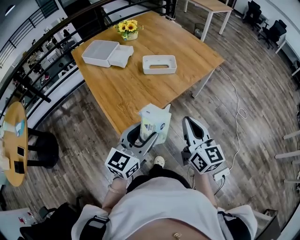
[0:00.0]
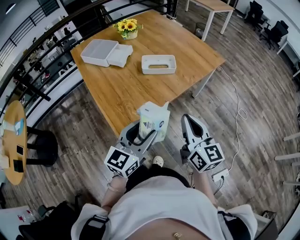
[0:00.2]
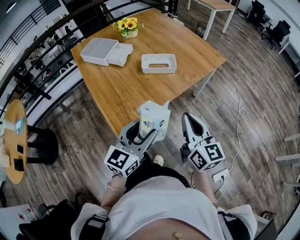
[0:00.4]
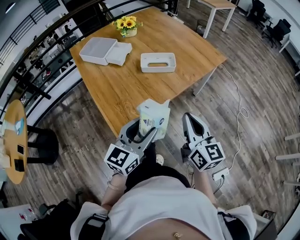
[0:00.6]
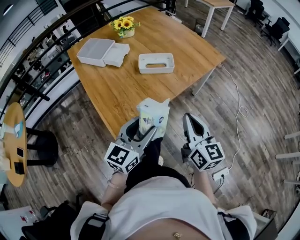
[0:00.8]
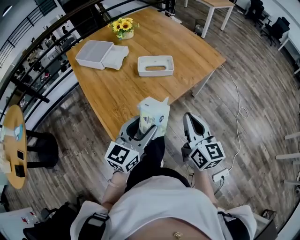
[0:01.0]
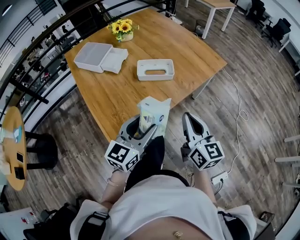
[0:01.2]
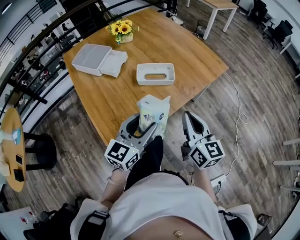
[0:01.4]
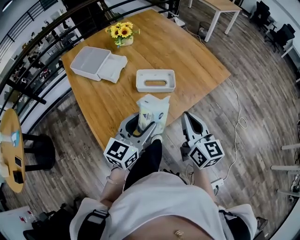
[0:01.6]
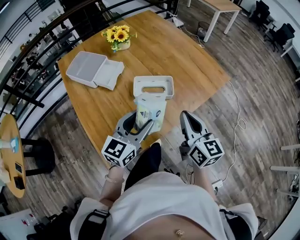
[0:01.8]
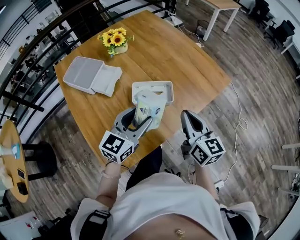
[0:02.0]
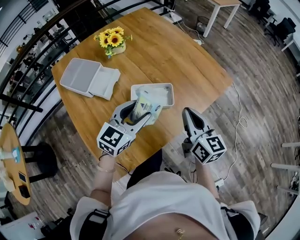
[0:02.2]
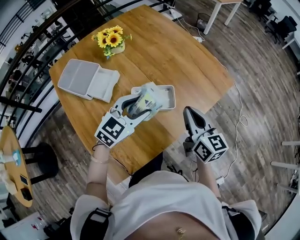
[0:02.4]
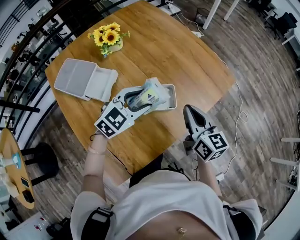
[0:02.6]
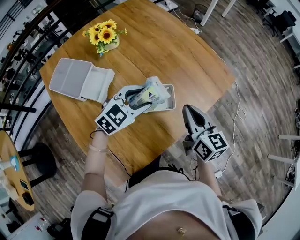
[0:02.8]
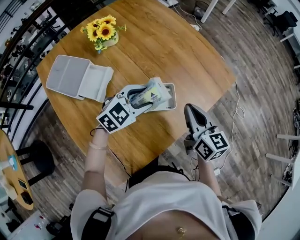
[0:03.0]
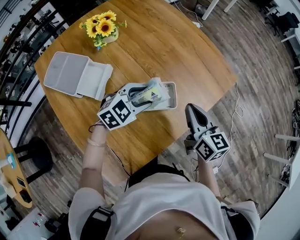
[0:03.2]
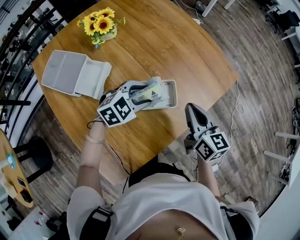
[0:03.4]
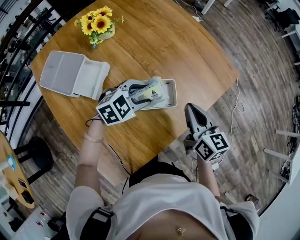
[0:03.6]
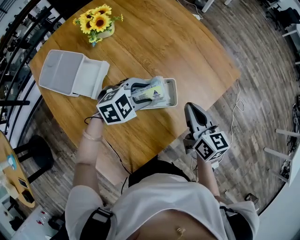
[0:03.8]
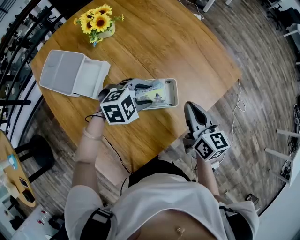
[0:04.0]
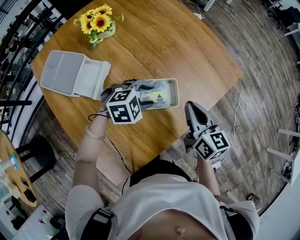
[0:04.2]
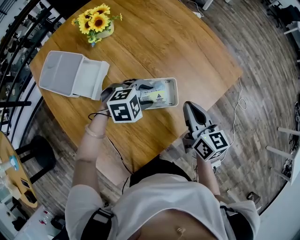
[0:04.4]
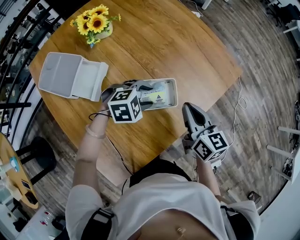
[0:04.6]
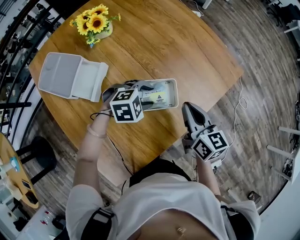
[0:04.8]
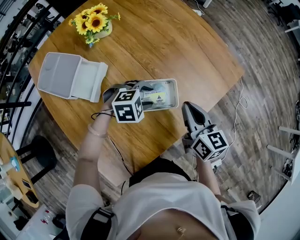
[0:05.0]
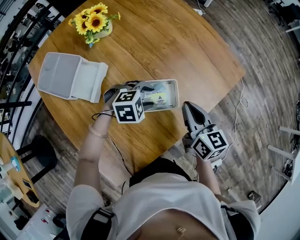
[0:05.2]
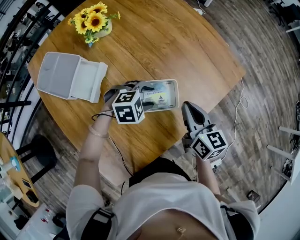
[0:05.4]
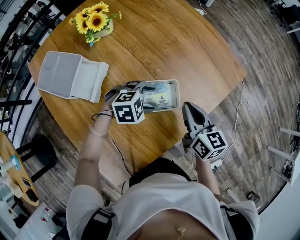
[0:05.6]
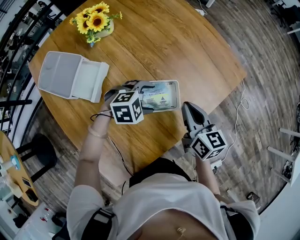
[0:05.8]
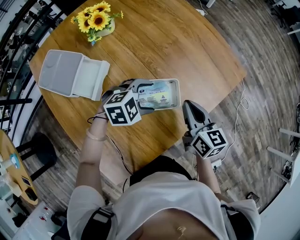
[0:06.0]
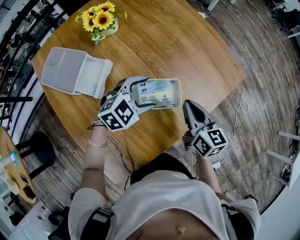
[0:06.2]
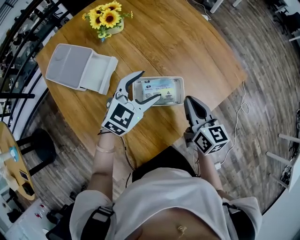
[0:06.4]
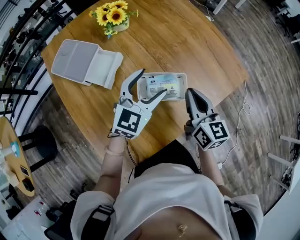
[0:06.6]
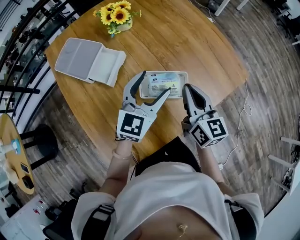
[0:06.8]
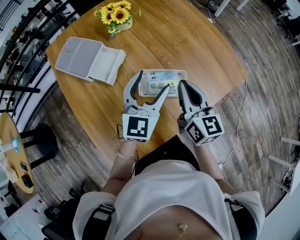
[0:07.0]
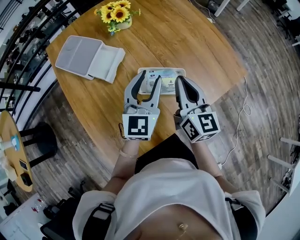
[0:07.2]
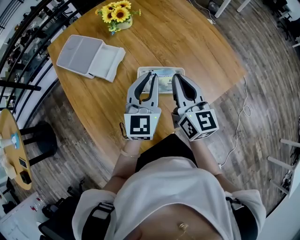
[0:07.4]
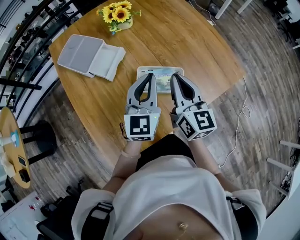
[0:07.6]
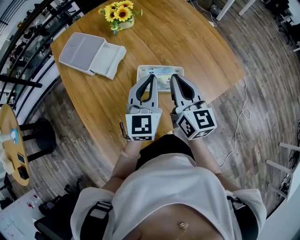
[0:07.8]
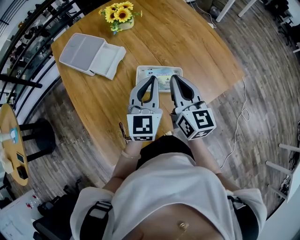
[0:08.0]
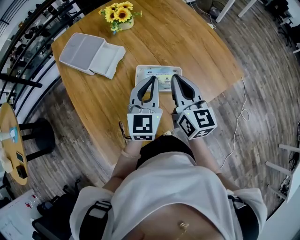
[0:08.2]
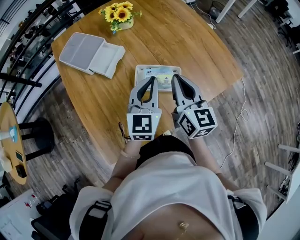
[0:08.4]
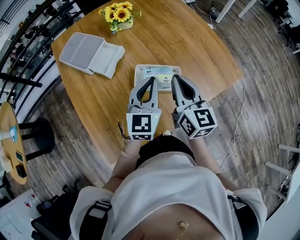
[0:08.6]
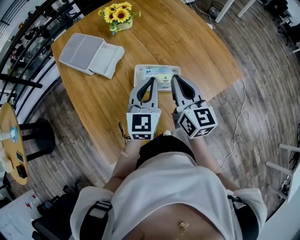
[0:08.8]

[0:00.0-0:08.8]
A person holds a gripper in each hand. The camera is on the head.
0:00.0 to 0:01.4: Both grippers move forward, some 15 cm.
0:01.4 to 0:03.0: Both grippers travel together forward, some 25 cm. The left gripper rotates approximately 40 degrees.
0:03.0 to 0:04.4: The left gripper travels downward by roughly 5 cm, and swivels about 30 degrees.
0:04.4 to 0:05.8: The left gripper opens up.
0:05.8 to 0:07.4: The left gripper moves upward, roughly 20 cm, points its fingers roughly 50 degrees further upward, and closes up. Meanwhile the right gripper heads upward, covering approximately 10 cm, and swivels about 20 degrees.
0:07.4 to 0:08.8: The grippers move only a little.

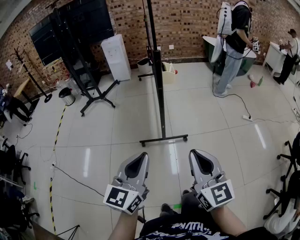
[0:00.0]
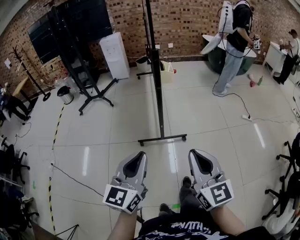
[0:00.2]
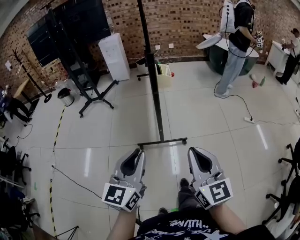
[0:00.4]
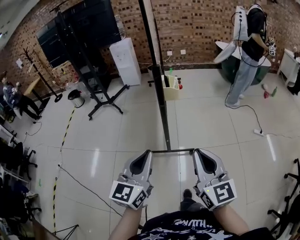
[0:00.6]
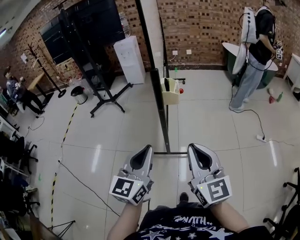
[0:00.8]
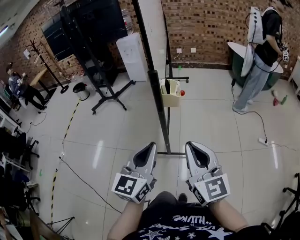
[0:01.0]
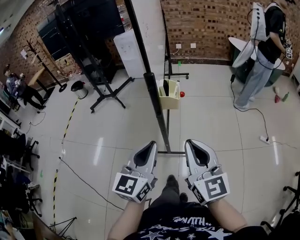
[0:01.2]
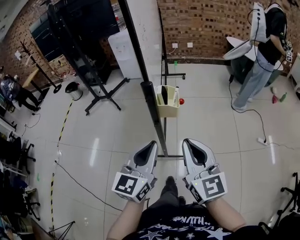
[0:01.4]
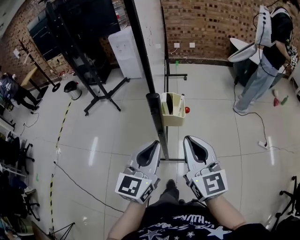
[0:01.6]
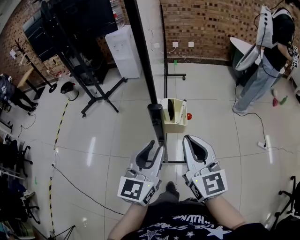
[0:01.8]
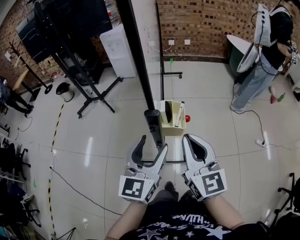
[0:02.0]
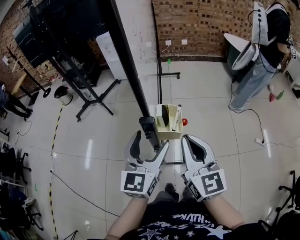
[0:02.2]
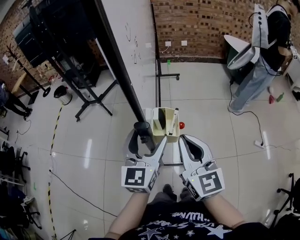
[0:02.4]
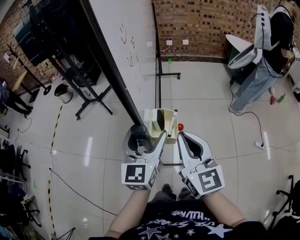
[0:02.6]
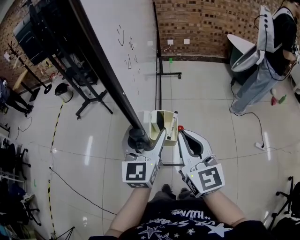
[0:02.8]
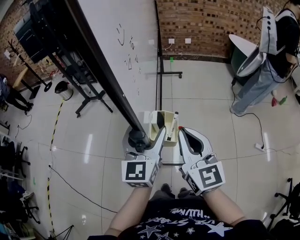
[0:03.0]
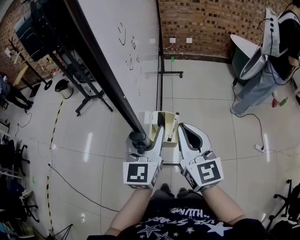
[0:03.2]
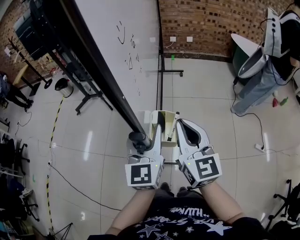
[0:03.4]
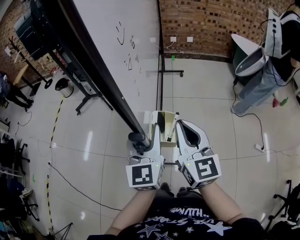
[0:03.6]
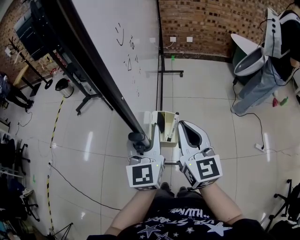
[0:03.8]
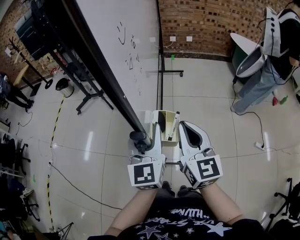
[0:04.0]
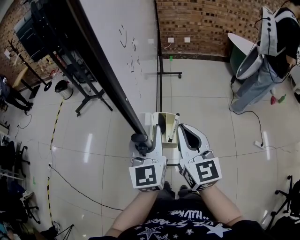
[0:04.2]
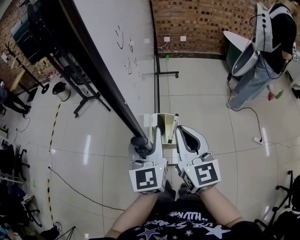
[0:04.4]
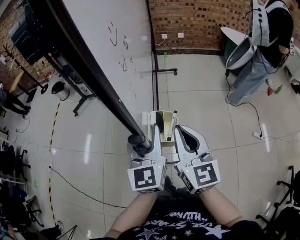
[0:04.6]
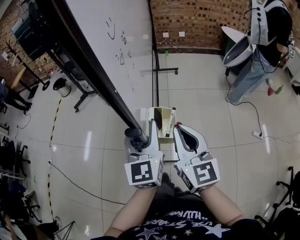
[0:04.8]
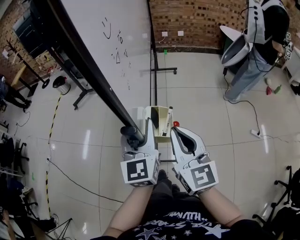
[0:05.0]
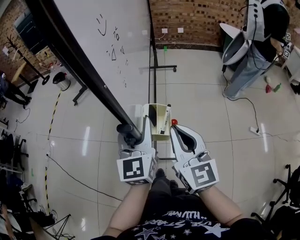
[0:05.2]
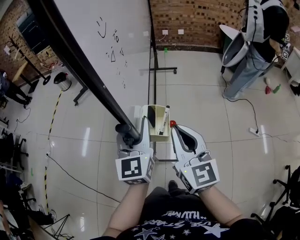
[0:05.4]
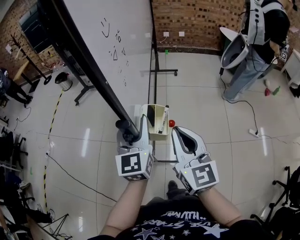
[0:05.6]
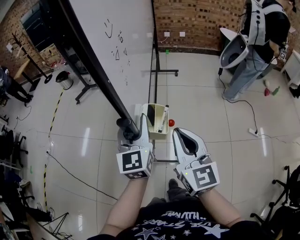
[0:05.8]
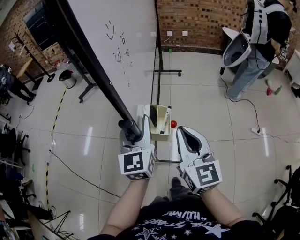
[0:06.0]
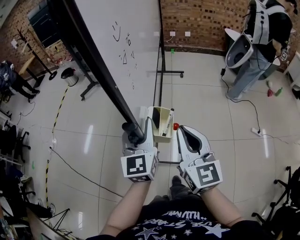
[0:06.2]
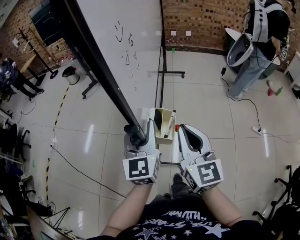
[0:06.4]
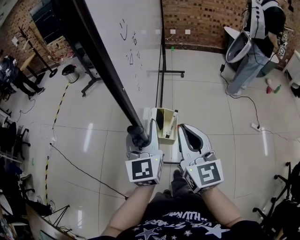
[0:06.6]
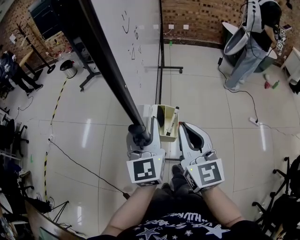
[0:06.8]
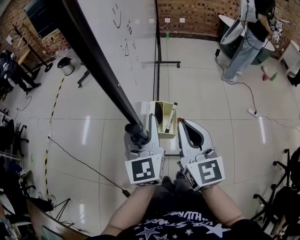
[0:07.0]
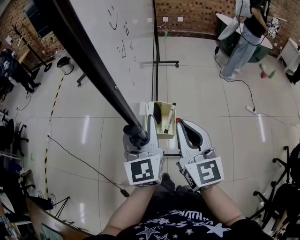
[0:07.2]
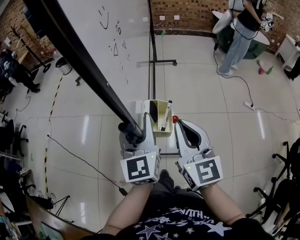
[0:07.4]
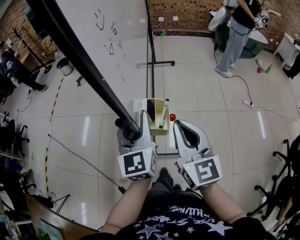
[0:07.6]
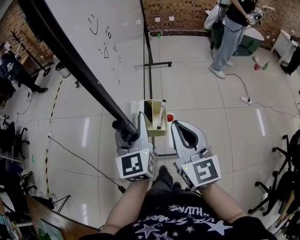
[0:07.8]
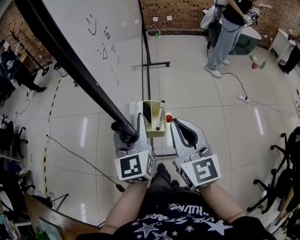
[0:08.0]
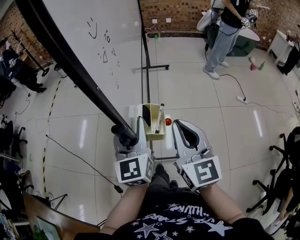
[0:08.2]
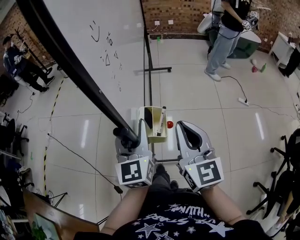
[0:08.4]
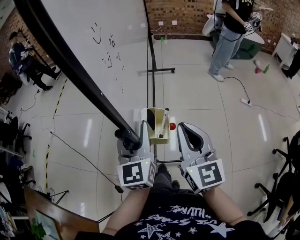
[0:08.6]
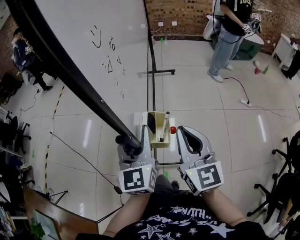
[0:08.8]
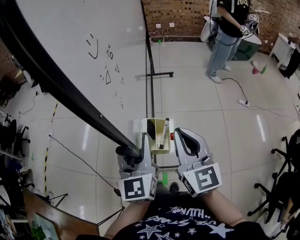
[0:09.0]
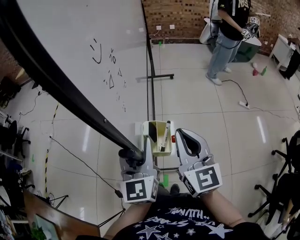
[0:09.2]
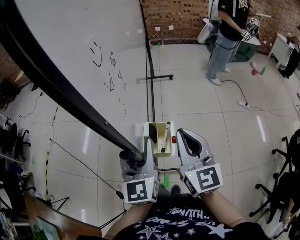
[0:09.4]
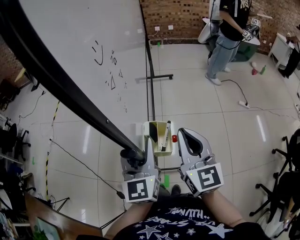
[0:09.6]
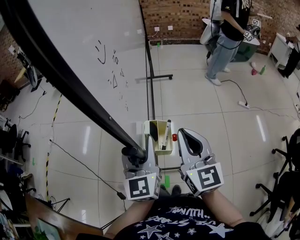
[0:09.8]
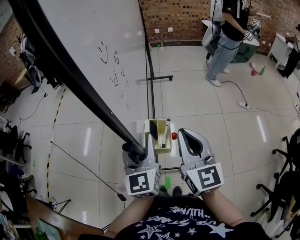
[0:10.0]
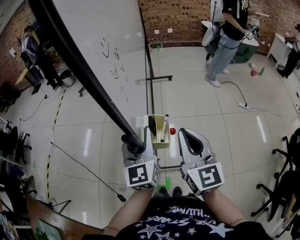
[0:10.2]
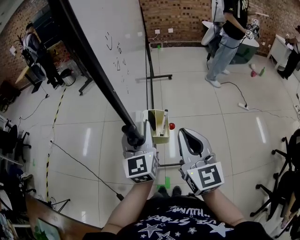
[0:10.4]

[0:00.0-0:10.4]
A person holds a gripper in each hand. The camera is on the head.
0:00.0 to 0:01.4: Both grippers move forward, roughly 30 cm.
0:01.4 to 0:03.0: Both grippers move forward, roughly 20 cm. The left gripper opens its fingers.
0:03.0 to 0:04.4: The left gripper closes its fingers.
0:04.4 to 0:06.0: Both grippers move backward, roughly 15 cm.
0:06.0 to 0:07.4: Both grippers travel together backward, approximately 20 cm.
0:07.4 to 0:09.0: Both grippers travel together backward, some 10 cm.
0:09.0 to 0:10.4: The grippers stay close to where they were, moving slightly.

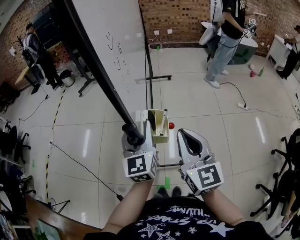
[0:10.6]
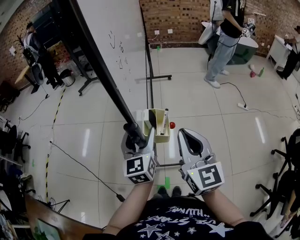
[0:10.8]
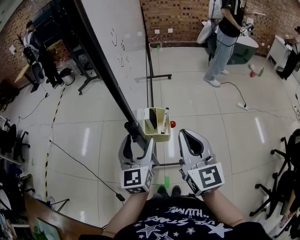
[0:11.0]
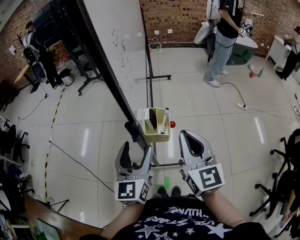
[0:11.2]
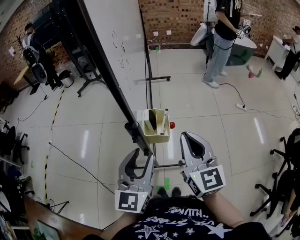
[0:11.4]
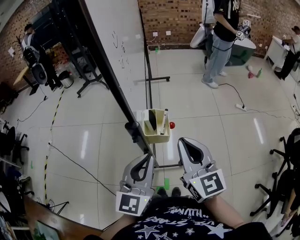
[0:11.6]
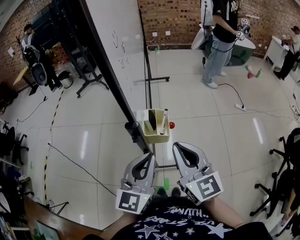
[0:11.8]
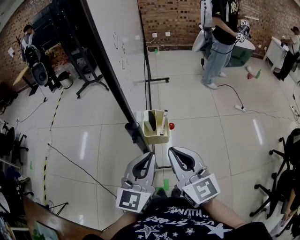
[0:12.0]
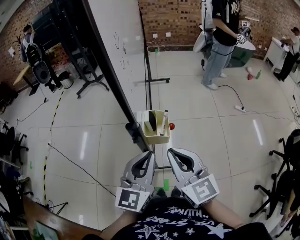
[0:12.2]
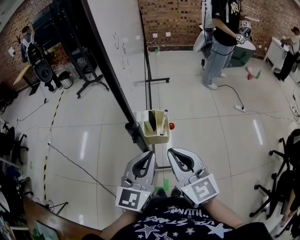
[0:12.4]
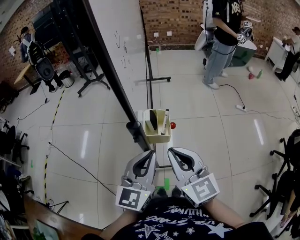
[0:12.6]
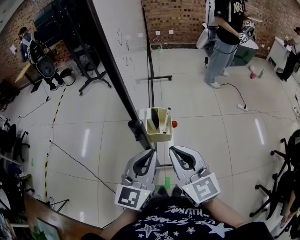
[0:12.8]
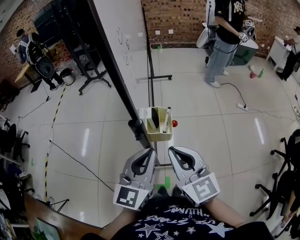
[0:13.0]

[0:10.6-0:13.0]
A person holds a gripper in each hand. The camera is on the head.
0:10.6 to 0:11.8: The left gripper is displaced backward by approximately 10 cm, turns by approximately 20 degrees, and closes its fingers.
0:11.8 to 0:13.0: The grippers move only a little.

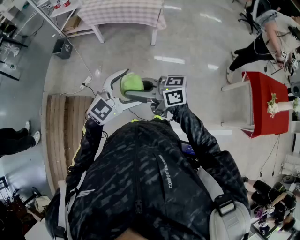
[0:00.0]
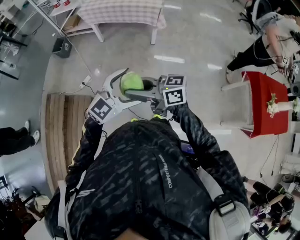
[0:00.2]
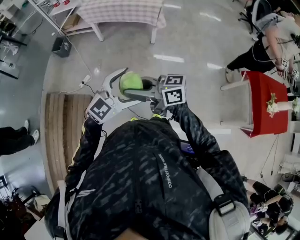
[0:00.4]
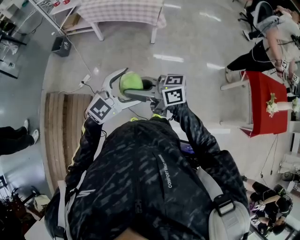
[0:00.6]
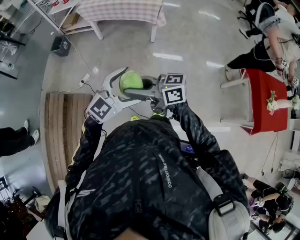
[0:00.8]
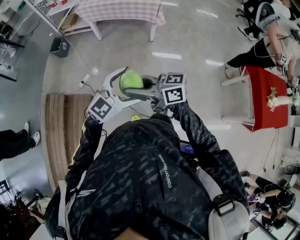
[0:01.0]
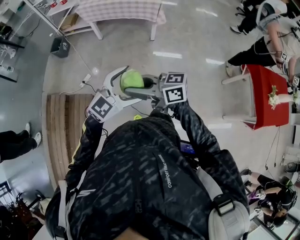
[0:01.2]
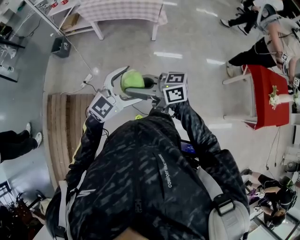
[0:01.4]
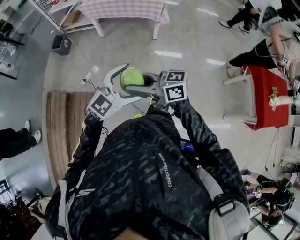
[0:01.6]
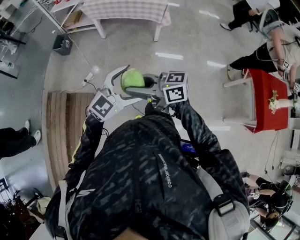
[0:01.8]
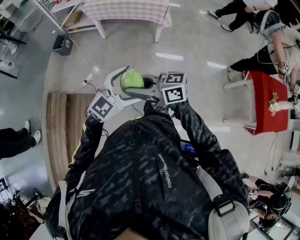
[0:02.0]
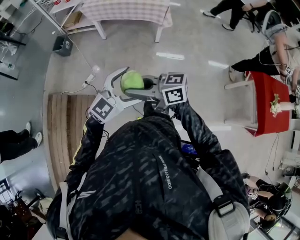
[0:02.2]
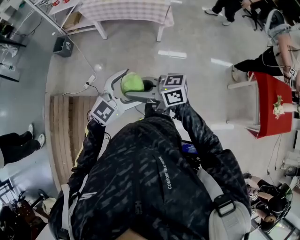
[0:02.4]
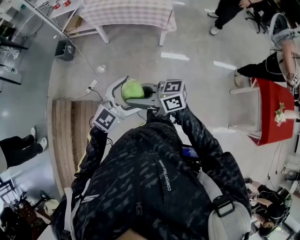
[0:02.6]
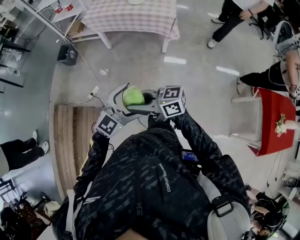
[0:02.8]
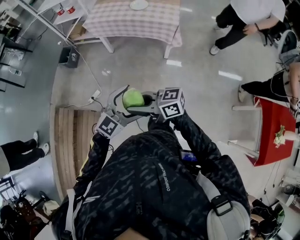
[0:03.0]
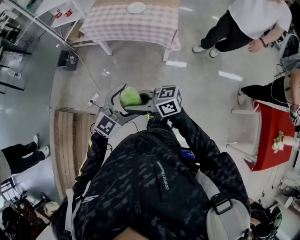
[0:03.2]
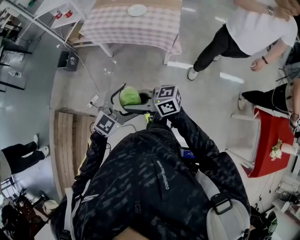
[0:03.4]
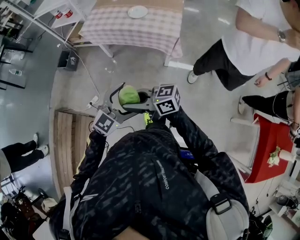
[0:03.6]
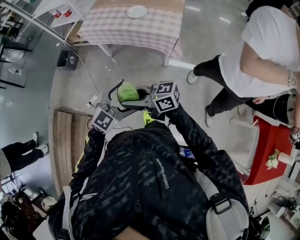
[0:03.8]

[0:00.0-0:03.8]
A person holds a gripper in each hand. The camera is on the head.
0:00.0 to 0:01.2: The grippers stay close to where they were, moving slightly.
0:01.2 to 0:02.6: The right gripper changes place by about 10 cm, while the left gripper moves approximately 10 cm.
0:02.6 to 0:03.8: The right gripper ends up some 30 cm from where it was, while the left gripper ends up about 30 cm from where it was.
